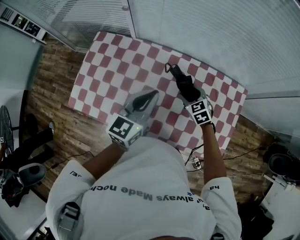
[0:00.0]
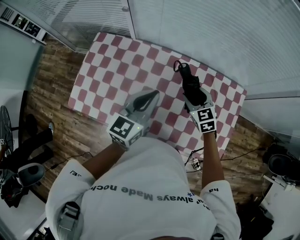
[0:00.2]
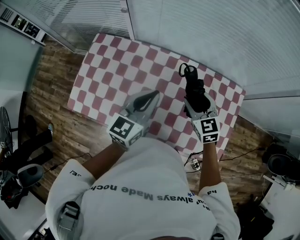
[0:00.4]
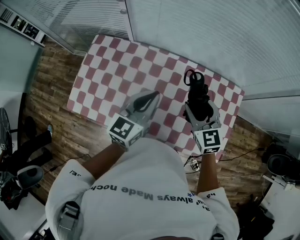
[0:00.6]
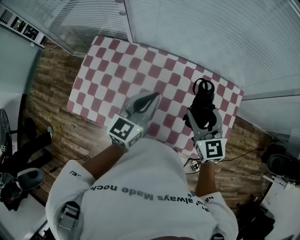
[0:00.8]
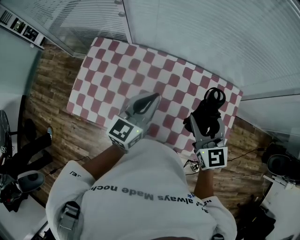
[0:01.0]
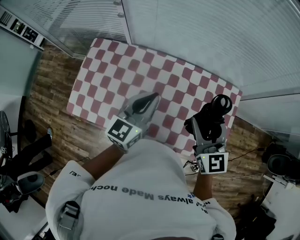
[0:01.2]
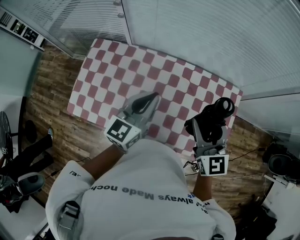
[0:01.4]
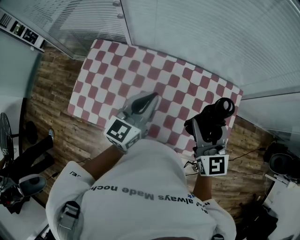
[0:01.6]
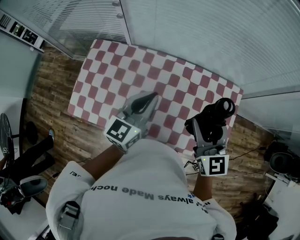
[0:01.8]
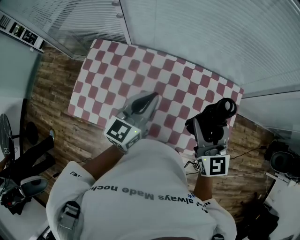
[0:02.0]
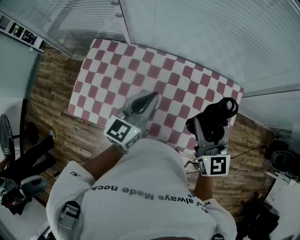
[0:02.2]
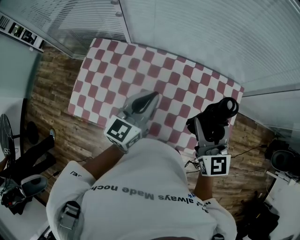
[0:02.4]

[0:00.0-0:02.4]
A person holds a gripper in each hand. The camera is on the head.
0:00.0 to 0:01.2: The right gripper is displaced upward and backward by roughly 25 cm, and tips its fingers upward by about 40 degrees.
0:01.2 to 0:02.4: Neither gripper changes place.

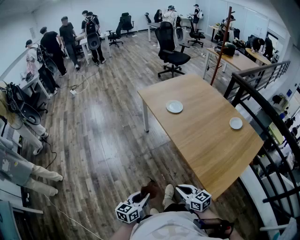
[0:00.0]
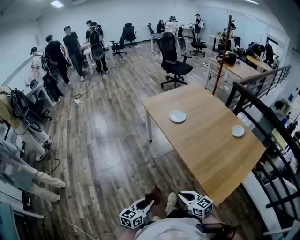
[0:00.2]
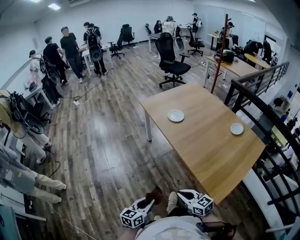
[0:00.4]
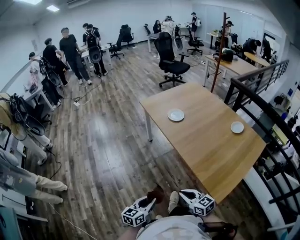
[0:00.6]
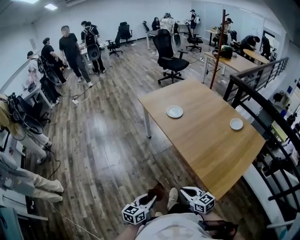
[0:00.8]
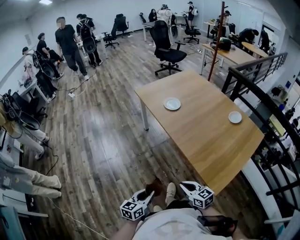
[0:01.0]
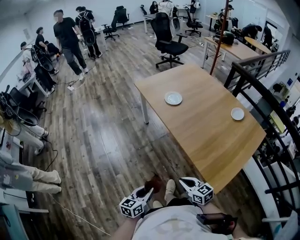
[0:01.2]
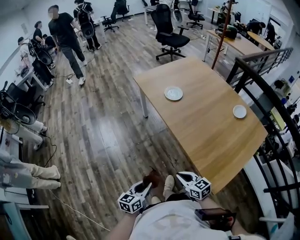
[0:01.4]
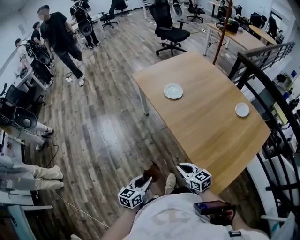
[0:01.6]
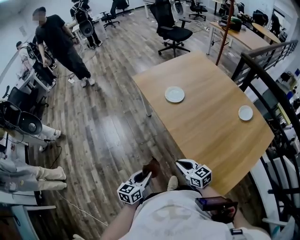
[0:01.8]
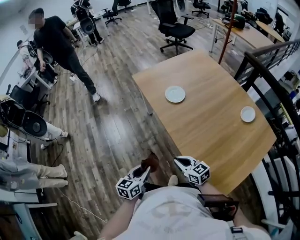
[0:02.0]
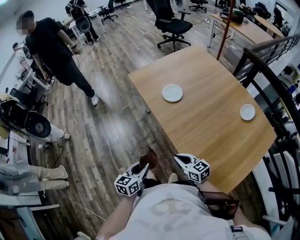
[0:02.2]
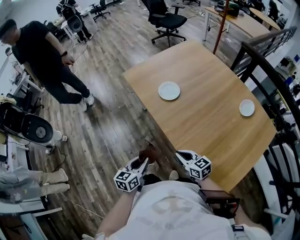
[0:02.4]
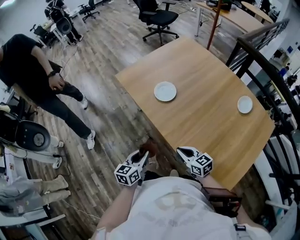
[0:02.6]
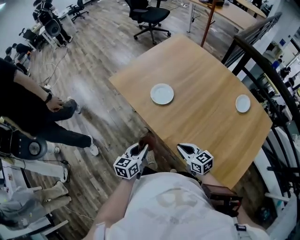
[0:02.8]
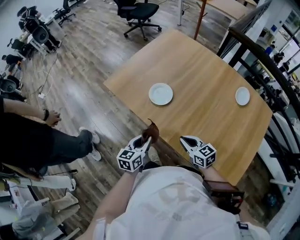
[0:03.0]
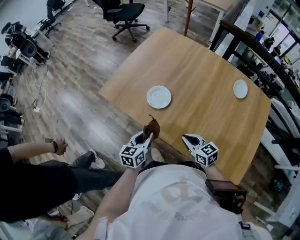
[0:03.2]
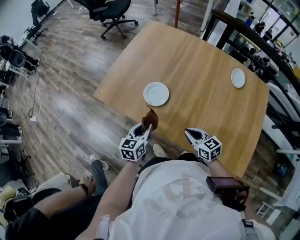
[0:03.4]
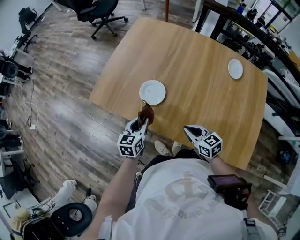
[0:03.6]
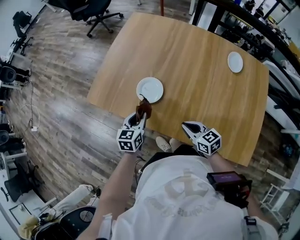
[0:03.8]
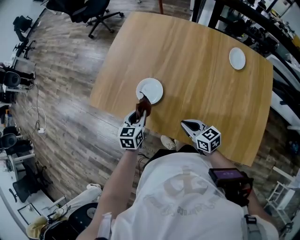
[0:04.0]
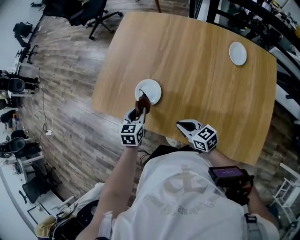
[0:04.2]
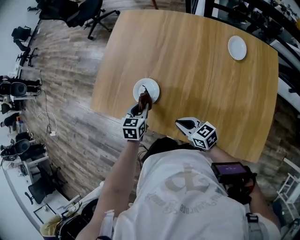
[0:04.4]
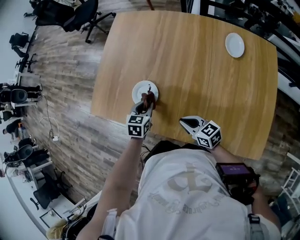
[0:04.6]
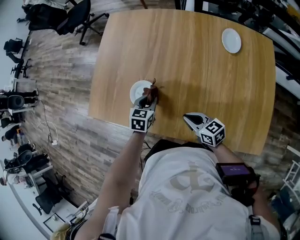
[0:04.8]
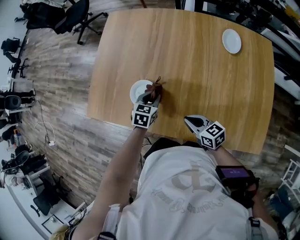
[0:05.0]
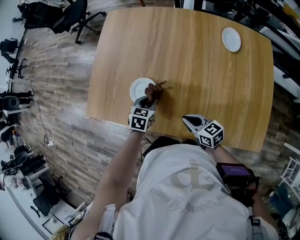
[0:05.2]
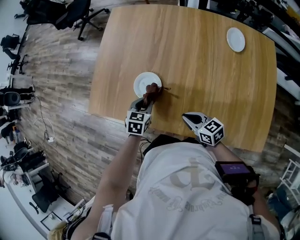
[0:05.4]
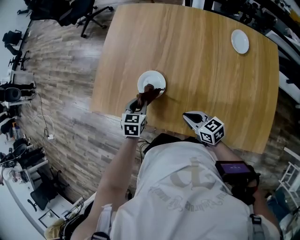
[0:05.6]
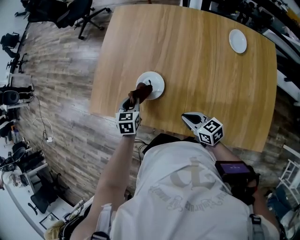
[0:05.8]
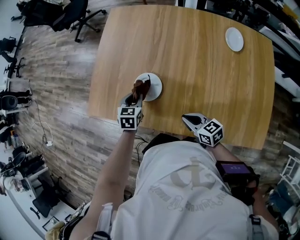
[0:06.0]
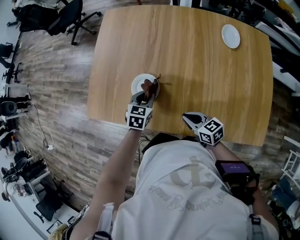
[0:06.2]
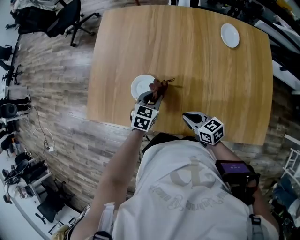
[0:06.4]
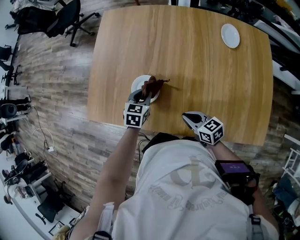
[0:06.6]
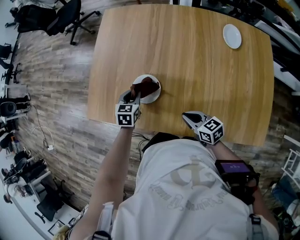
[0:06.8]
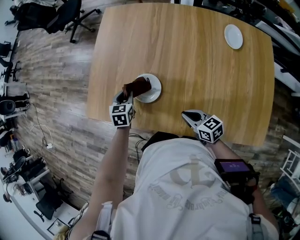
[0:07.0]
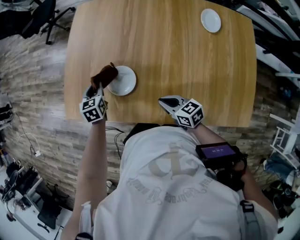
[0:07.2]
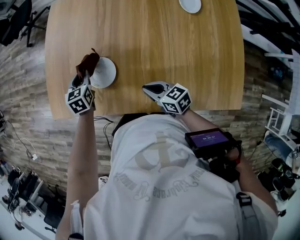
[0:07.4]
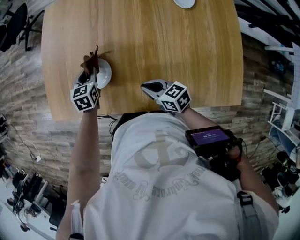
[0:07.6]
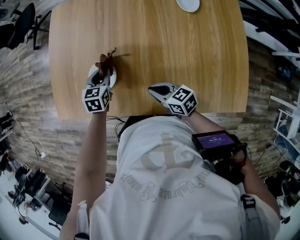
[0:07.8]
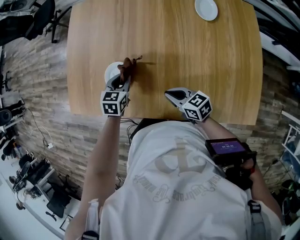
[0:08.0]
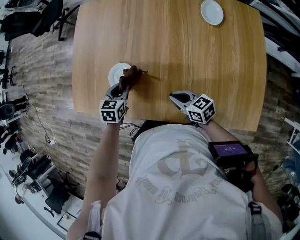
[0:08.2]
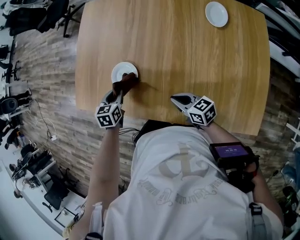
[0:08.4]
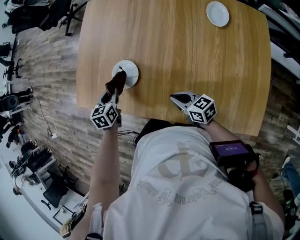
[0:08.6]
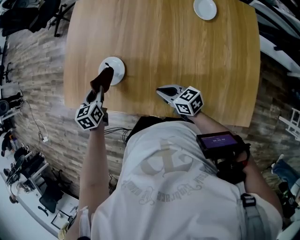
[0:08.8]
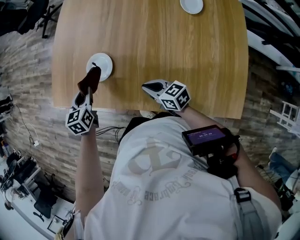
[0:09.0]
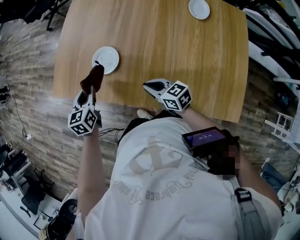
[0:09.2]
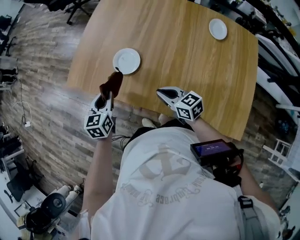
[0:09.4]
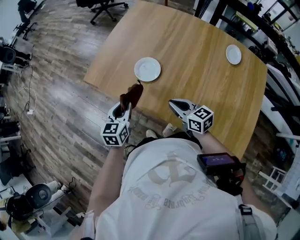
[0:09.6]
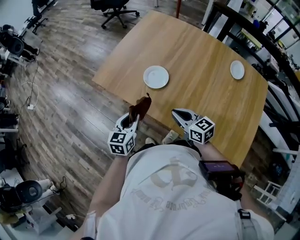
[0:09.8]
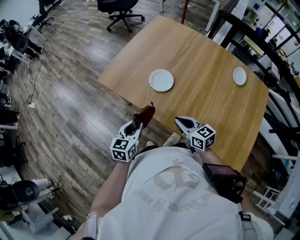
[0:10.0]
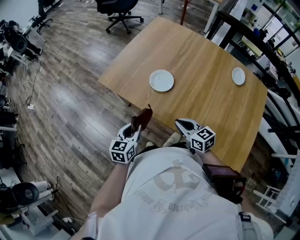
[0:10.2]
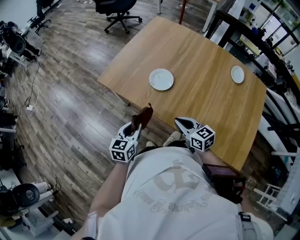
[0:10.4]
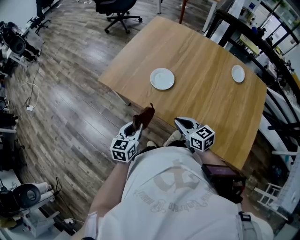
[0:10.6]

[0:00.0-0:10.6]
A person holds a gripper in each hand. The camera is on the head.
0:00.0 to 0:01.6: Both grippers travel together forward, approximately 5 cm.
0:01.6 to 0:03.0: Both grippers move forward, about 30 cm.
0:03.0 to 0:04.6: The right gripper heads forward, covering about 5 cm, while the left gripper moves forward, some 20 cm, and changes its angle by roughly 40 degrees.
0:04.6 to 0:06.0: The left gripper travels forward and to the left by approximately 10 cm.
0:06.0 to 0:07.6: The left gripper goes left and right, roughly 15 cm each way, reversing 2 times.
0:07.6 to 0:09.0: The left gripper heads backward, to the left and upward, covering roughly 15 cm.
0:09.0 to 0:10.6: The left gripper shifts some 20 cm backward and to the left; the right gripper travels to the left and upward by about 15 cm.

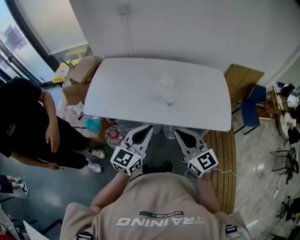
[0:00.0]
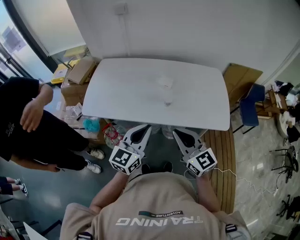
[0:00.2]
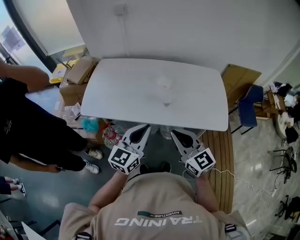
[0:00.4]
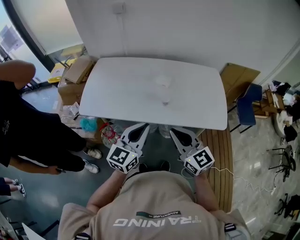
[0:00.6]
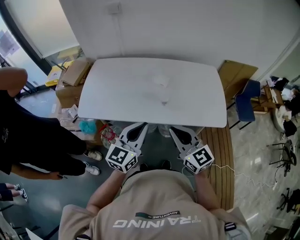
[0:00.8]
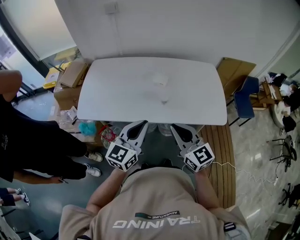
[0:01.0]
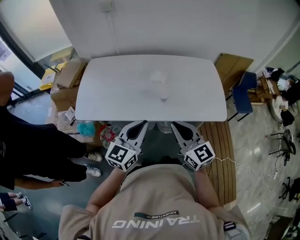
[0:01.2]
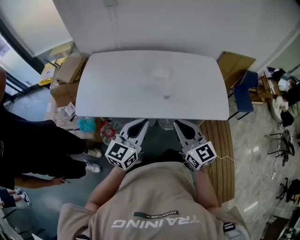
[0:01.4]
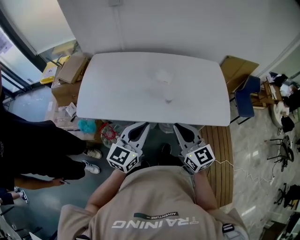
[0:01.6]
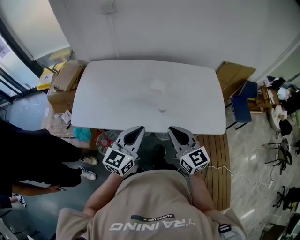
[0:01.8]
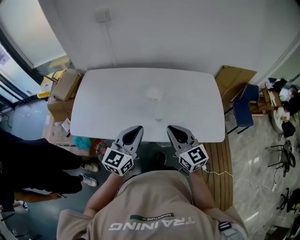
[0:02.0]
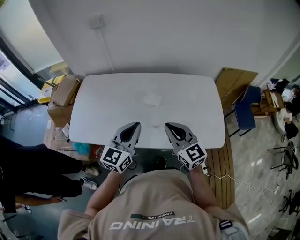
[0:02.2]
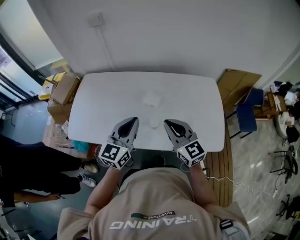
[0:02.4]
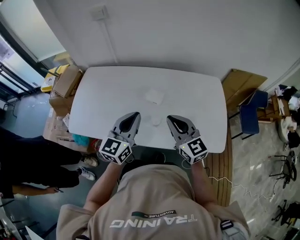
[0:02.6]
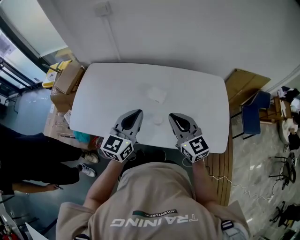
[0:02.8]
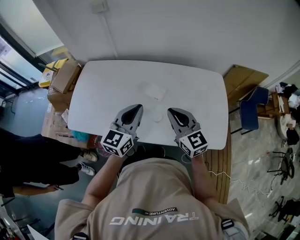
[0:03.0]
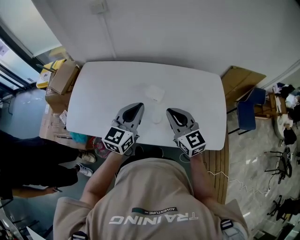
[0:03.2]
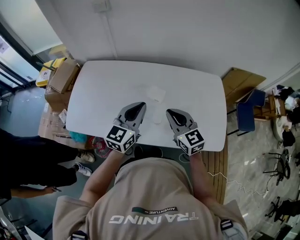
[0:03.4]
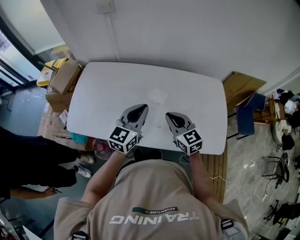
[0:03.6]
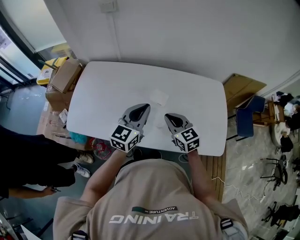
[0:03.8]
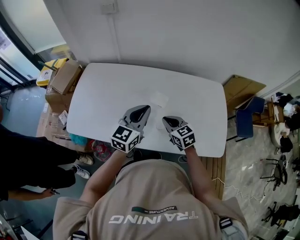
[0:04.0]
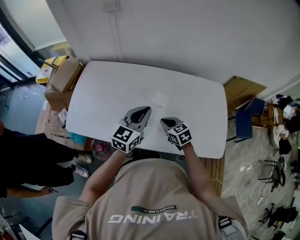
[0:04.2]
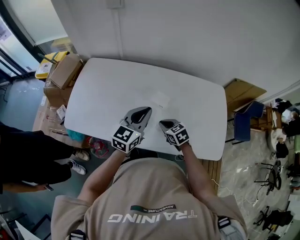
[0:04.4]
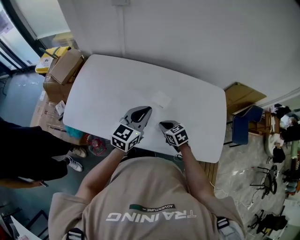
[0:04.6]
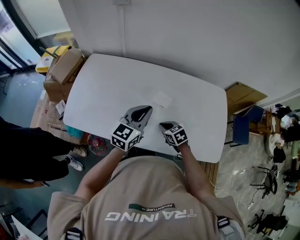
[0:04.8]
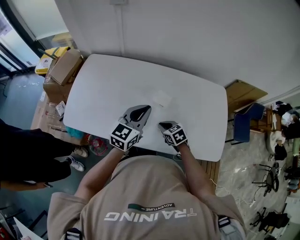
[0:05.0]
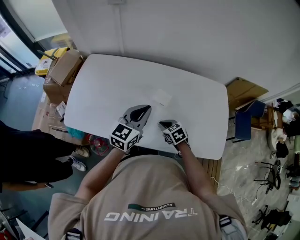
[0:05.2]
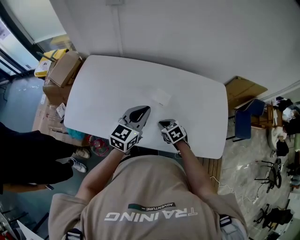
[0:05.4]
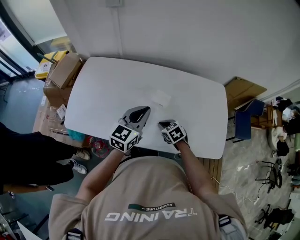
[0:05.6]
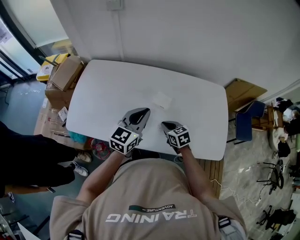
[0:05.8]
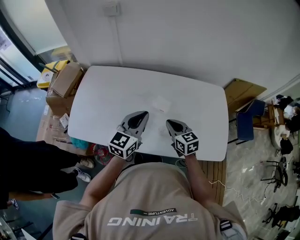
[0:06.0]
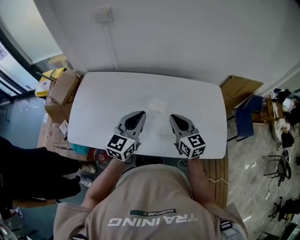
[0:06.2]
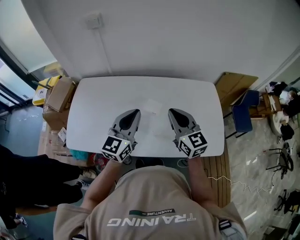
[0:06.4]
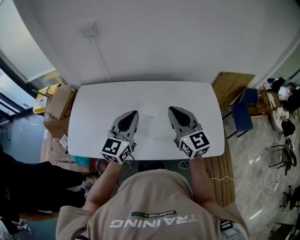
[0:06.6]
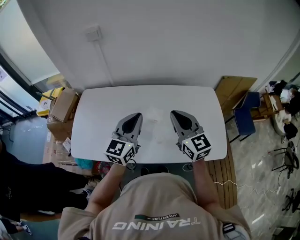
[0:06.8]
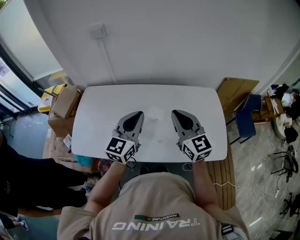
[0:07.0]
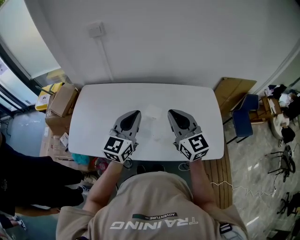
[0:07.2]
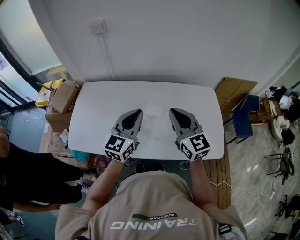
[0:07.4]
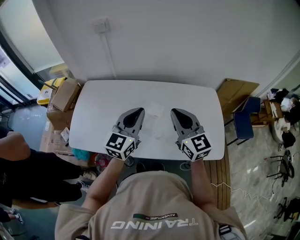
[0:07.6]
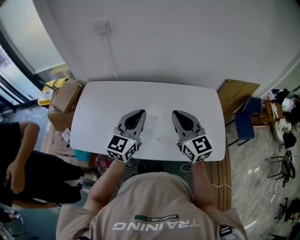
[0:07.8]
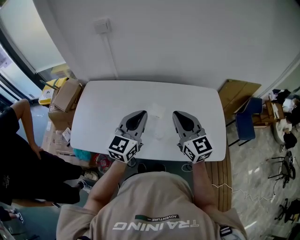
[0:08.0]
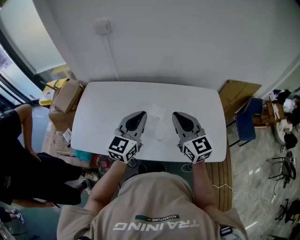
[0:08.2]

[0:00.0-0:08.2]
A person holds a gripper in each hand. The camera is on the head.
0:00.0 to 0:01.6: The left gripper moves approximately 5 cm. The right gripper ends up roughly 5 cm from where it was.
0:01.6 to 0:03.2: Both grippers travel together forward, some 20 cm.
0:03.2 to 0:05.0: The right gripper is displaced downward by about 25 cm, and points its fingers roughly 40 degrees further downward, while the left gripper shifts by some 5 cm.
0:05.0 to 0:06.6: The right gripper is displaced upward by approximately 30 cm, and tilts its fingers about 50 degrees upward. Meanwhile the left gripper goes approximately 10 cm upward.
0:06.6 to 0:08.2: The grippers move only a little.

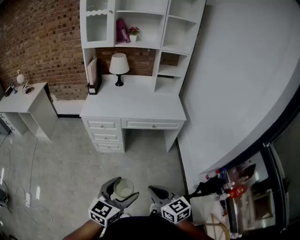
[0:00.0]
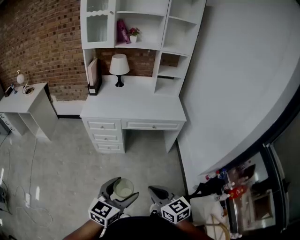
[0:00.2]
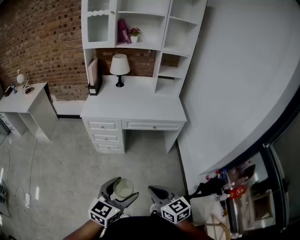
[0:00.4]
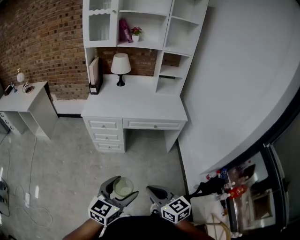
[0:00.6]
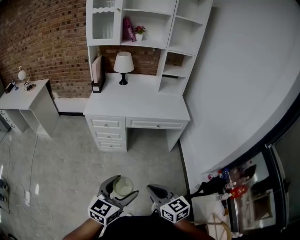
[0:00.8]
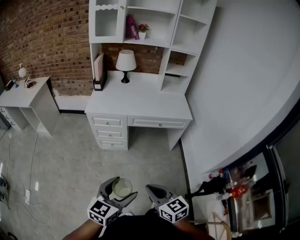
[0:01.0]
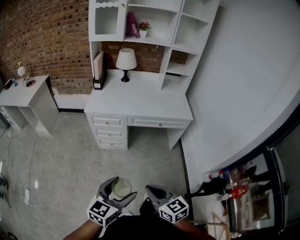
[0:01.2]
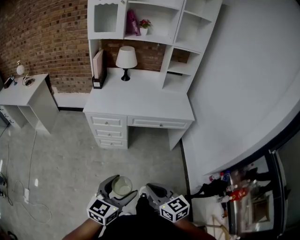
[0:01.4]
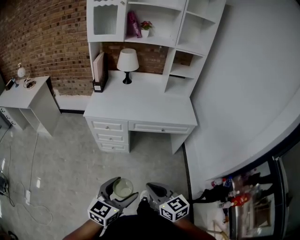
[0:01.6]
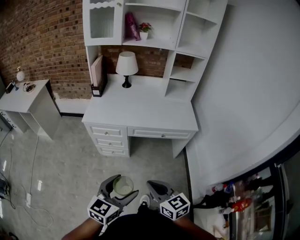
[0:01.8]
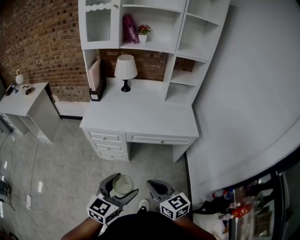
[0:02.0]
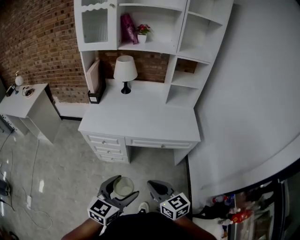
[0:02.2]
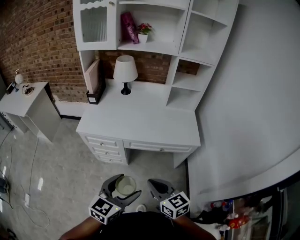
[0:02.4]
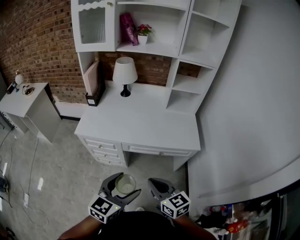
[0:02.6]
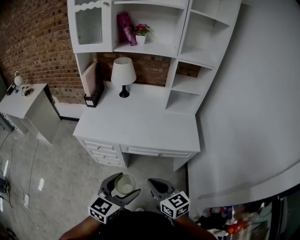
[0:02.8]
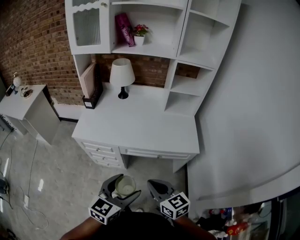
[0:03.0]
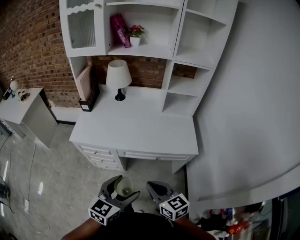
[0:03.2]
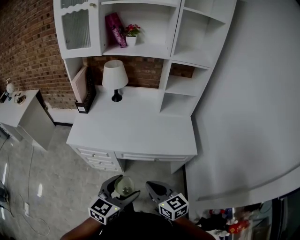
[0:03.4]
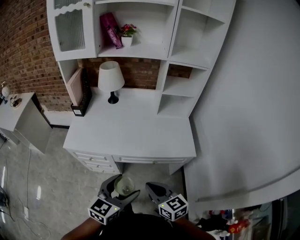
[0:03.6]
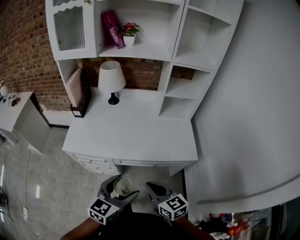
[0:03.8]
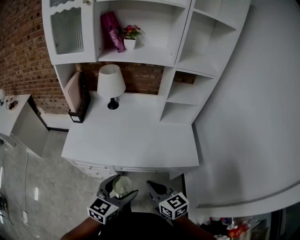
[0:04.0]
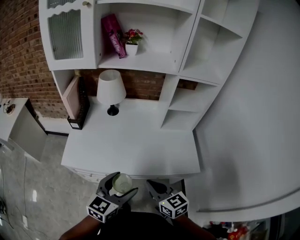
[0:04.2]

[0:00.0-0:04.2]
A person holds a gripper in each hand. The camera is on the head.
0:00.0 to 0:01.4: The grippers both shift to the left by approximately 5 cm.
0:01.4 to 0:02.8: The left gripper is displaced forward and to the right by some 30 cm, while the right gripper shifts approximately 30 cm forward.
0:02.8 to 0:04.2: Both grippers travel together forward, roughly 20 cm.
